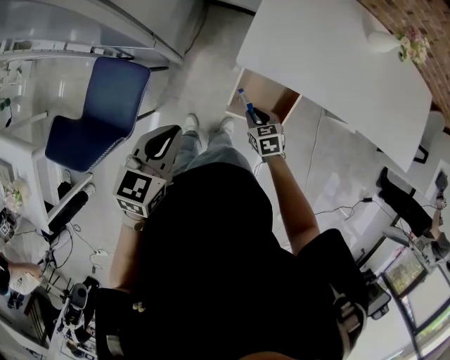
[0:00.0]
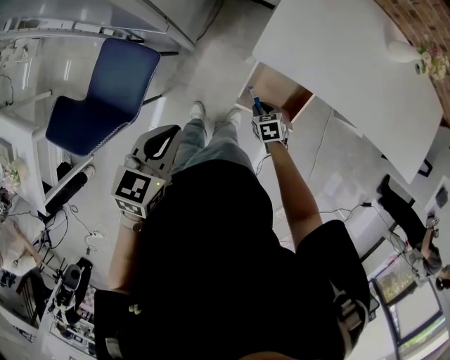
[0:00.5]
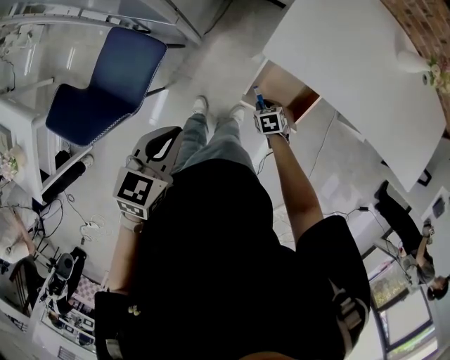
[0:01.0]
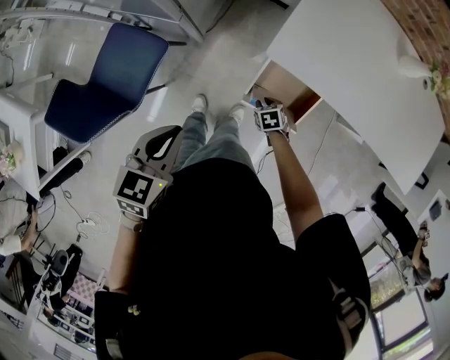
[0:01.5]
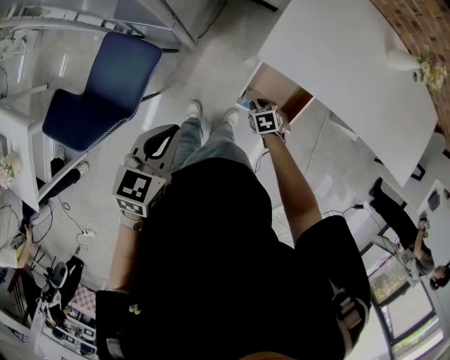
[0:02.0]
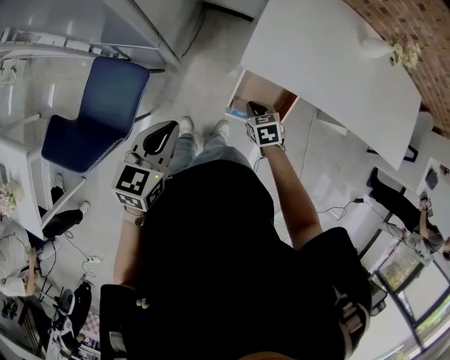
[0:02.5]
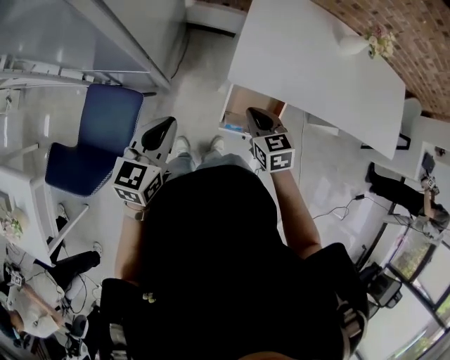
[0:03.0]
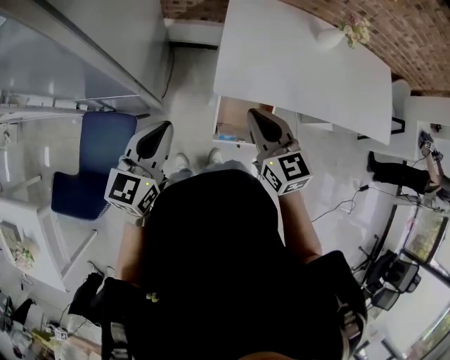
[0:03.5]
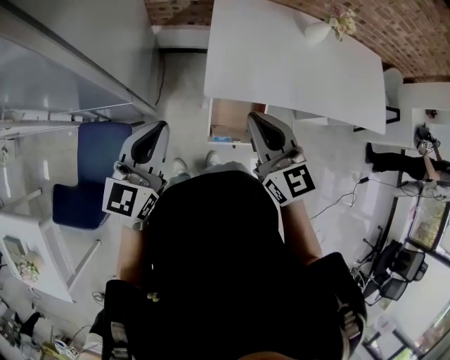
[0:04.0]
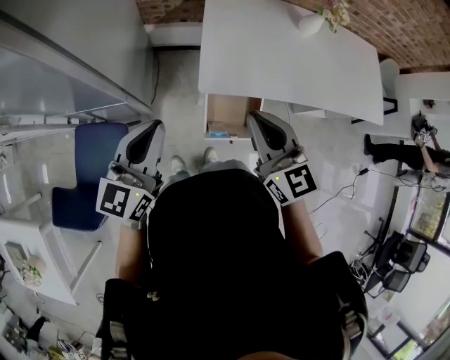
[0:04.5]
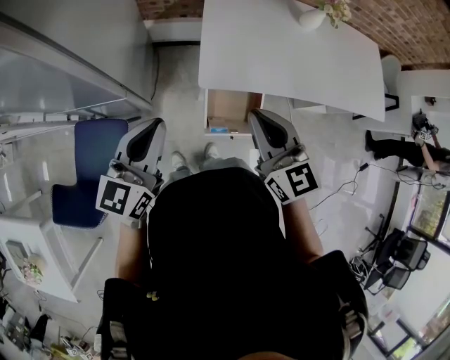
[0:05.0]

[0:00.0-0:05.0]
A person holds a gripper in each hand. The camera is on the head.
0:00.0 to 0:02.5: The right gripper moves some 10 cm downward and comes back.
0:02.5 to 0:05.0: The left gripper goes some 15 cm upward and forward, and changes its angle by about 30 degrees; the right gripper travels upward by about 35 cm, and angles its fingers upward, by roughly 50 degrees.

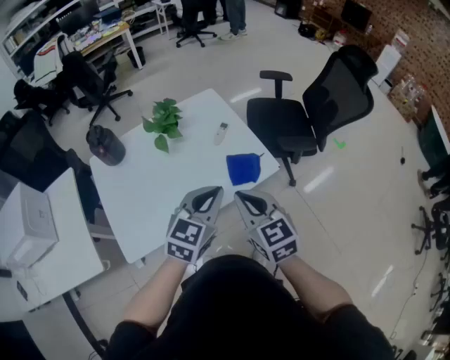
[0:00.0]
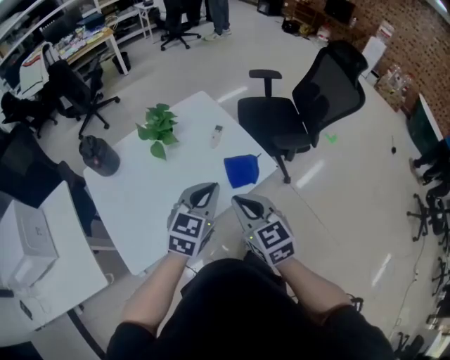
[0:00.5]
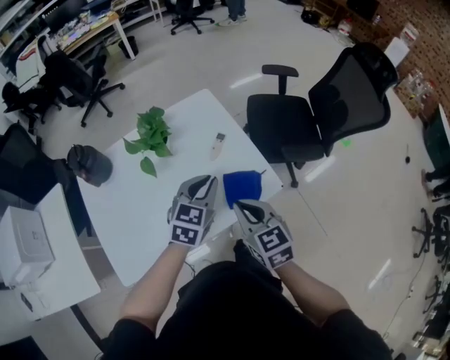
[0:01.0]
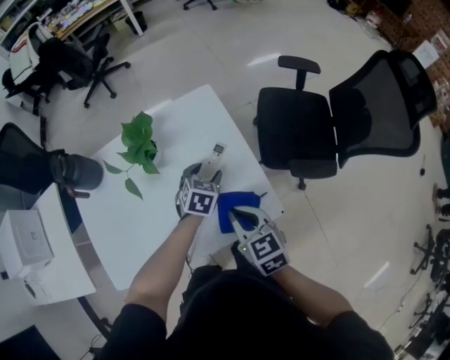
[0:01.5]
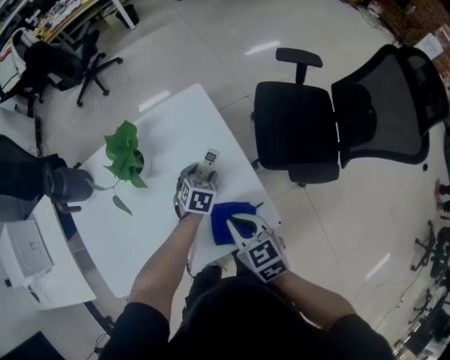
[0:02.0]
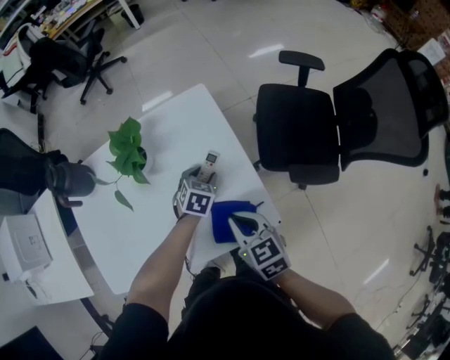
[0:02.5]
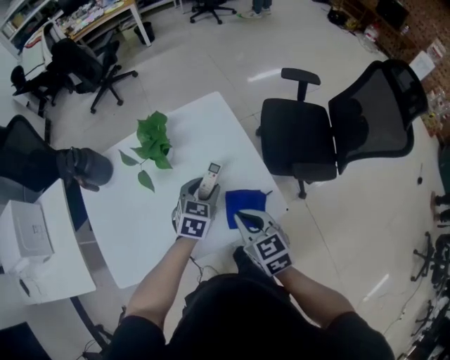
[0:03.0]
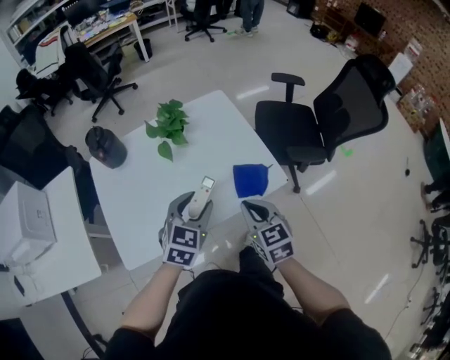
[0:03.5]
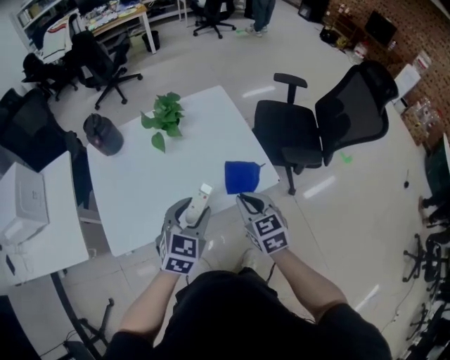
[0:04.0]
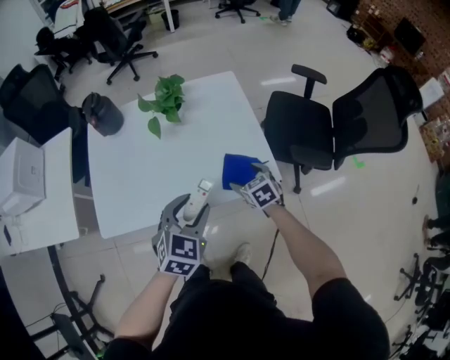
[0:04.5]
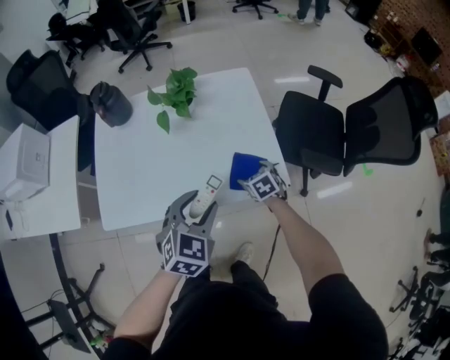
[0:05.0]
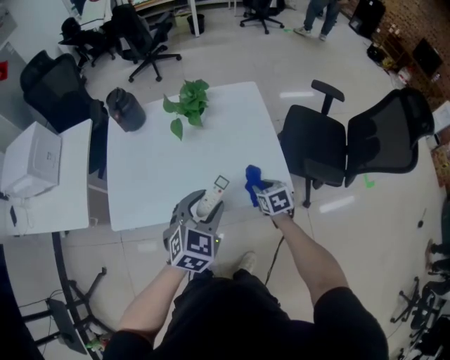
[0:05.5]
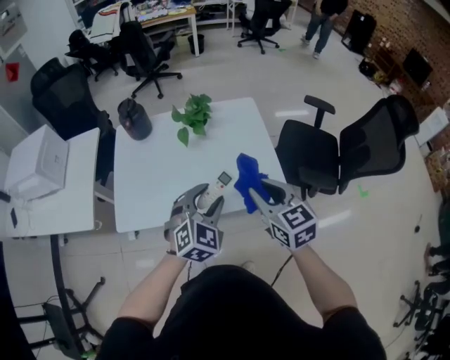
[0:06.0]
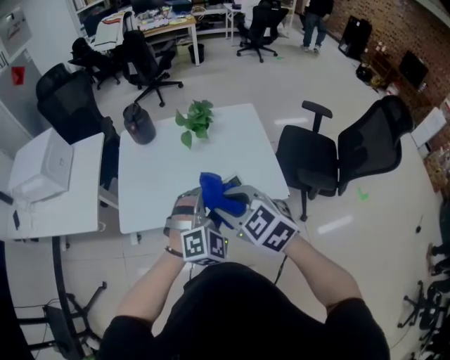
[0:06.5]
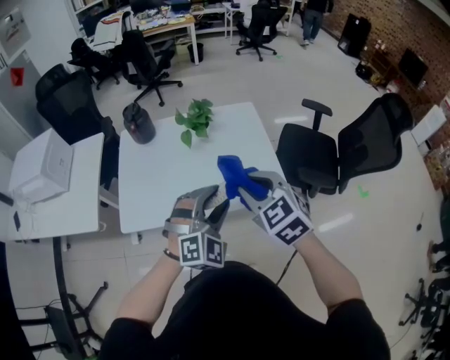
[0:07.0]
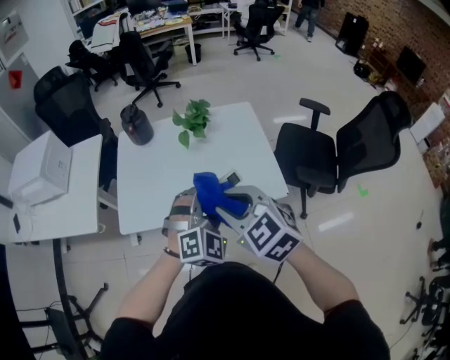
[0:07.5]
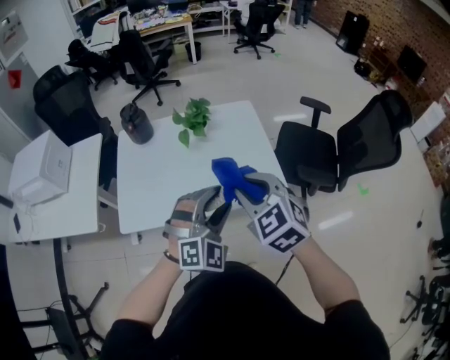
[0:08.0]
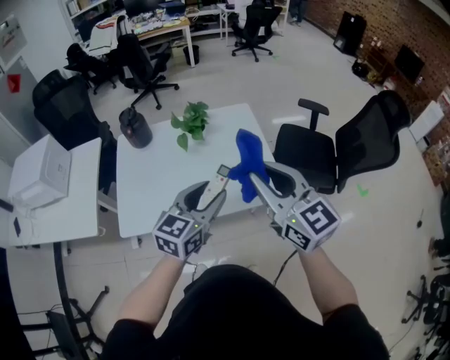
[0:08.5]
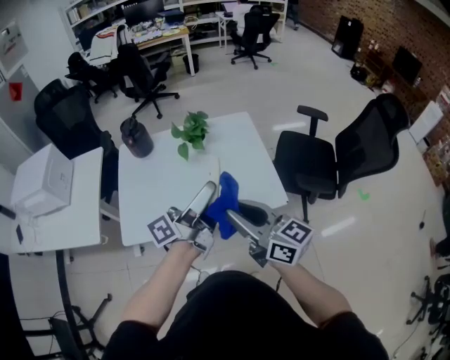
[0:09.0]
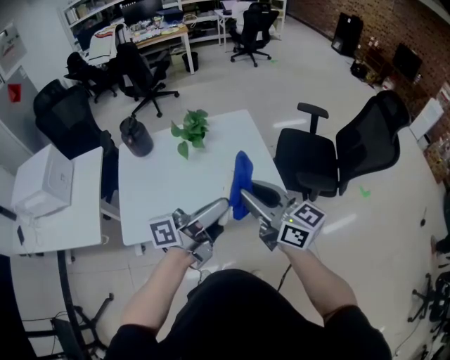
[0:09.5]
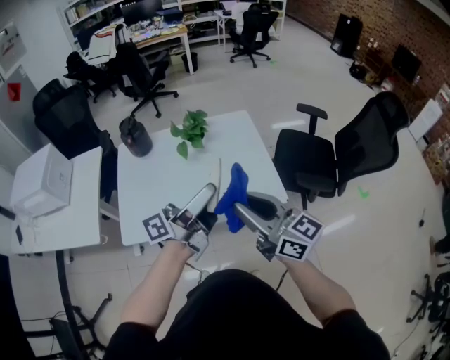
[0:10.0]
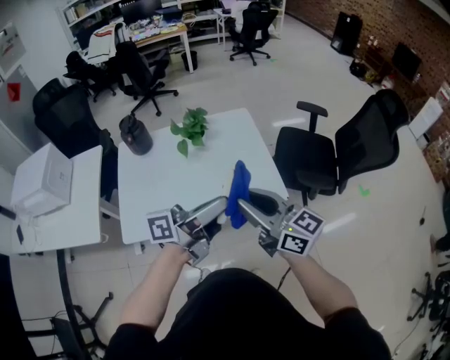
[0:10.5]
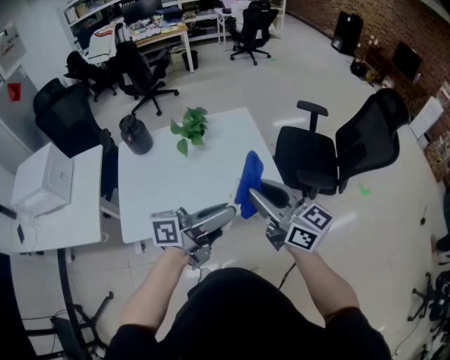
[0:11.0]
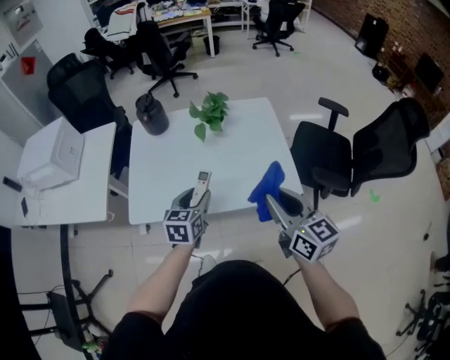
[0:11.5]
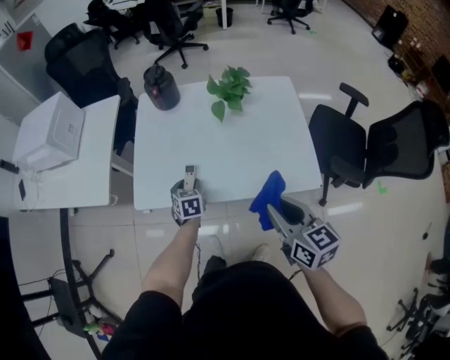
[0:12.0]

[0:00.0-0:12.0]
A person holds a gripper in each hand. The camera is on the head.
0:00.0 to 0:02.0: The right gripper heads forward and downward, covering roughly 25 cm, and turns by some 20 degrees. Meanwhile the left gripper travels forward and downward by approximately 50 cm, tilts its fingers roughly 40 degrees downward, and opens.
0:02.0 to 0:04.0: The left gripper shifts roughly 40 cm backward and upward, and turns by roughly 30 degrees. Meanwhile the right gripper shifts roughly 15 cm backward and upward.
0:04.0 to 0:06.0: The right gripper goes downward and returns, about 20 cm each way, and opens, then closes once more.
0:06.0 to 0:08.0: The left gripper heads backward, covering about 5 cm, and rotates some 30 degrees. Meanwhile the right gripper moves left and right over about 10 cm, changing direction 3 times, and turns by approximately 30 degrees.
0:08.0 to 0:10.0: The right gripper points its fingers some 40 degrees further upward, while the left gripper heads upward, covering some 5 cm, and twists about 110 degrees counterclockwise, seen from behind.
0:10.0 to 0:12.0: The right gripper shifts approximately 15 cm downward, and swivels about 30 degrees. Meanwhile the left gripper goes roughly 35 cm downward, and tilts its fingers approximately 70 degrees downward.

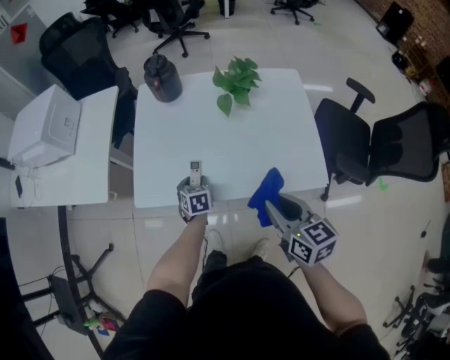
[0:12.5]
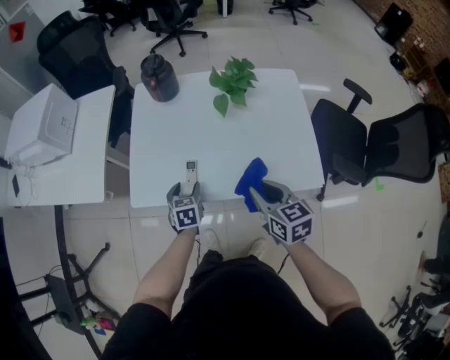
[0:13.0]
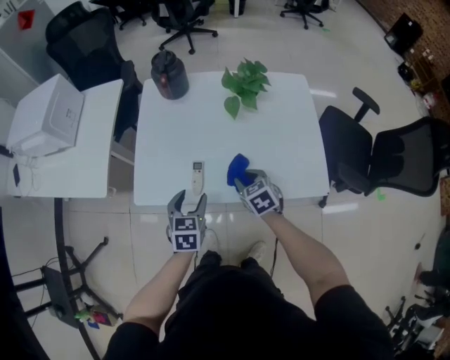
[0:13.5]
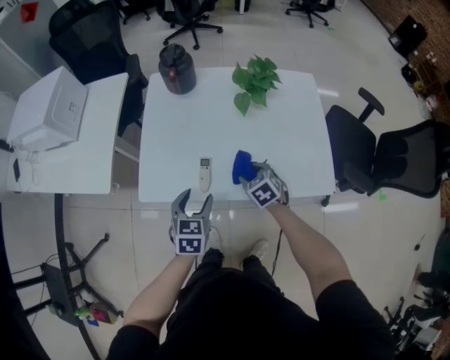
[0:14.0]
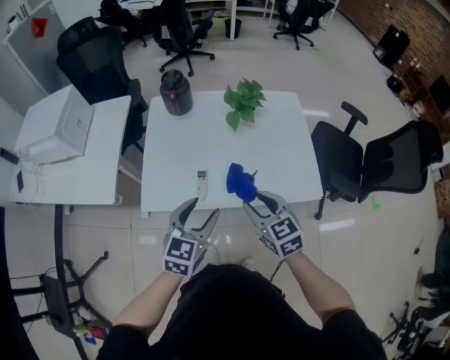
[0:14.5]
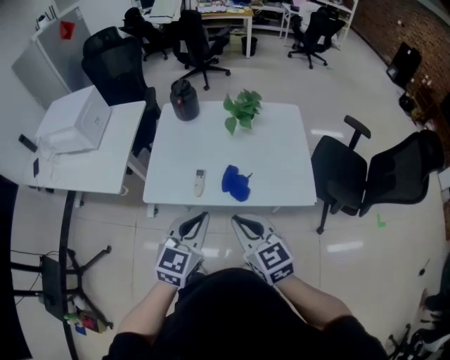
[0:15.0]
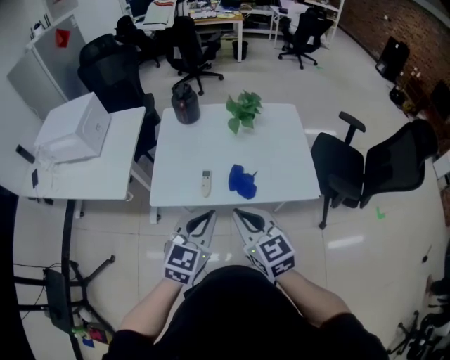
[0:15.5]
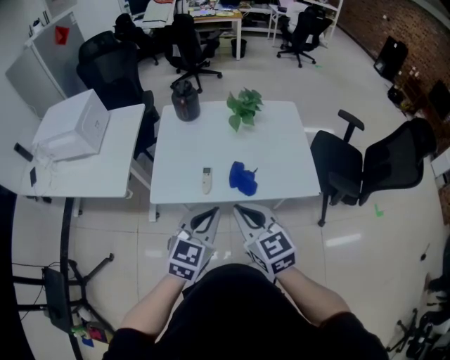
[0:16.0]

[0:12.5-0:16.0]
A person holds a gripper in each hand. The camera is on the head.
0:12.5 to 0:14.5: The left gripper moves upward and backward, approximately 25 cm, and changes its angle by roughly 40 degrees; the right gripper moves to the left, some 5 cm, moves roughly 20 cm downward and comes back, and turns by some 20 degrees.
0:14.5 to 0:16.0: The right gripper moves backward, upward and to the left, some 15 cm, and closes its fingers; the left gripper moves backward and upward, approximately 10 cm, and closes up.

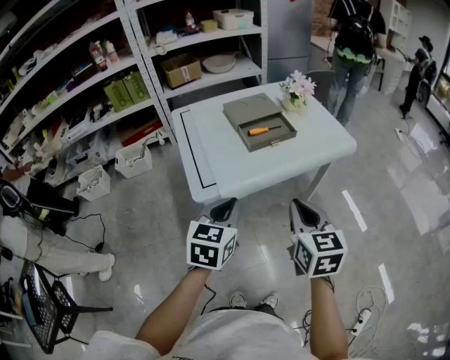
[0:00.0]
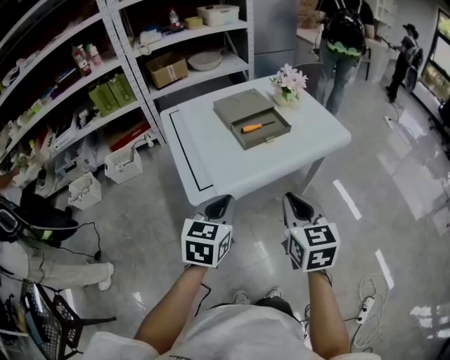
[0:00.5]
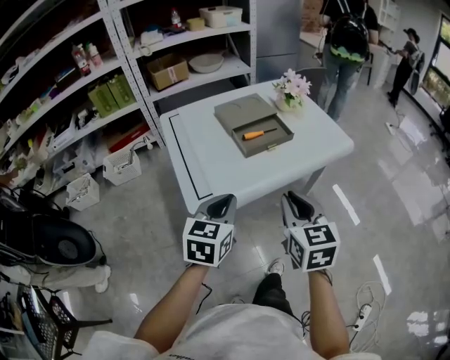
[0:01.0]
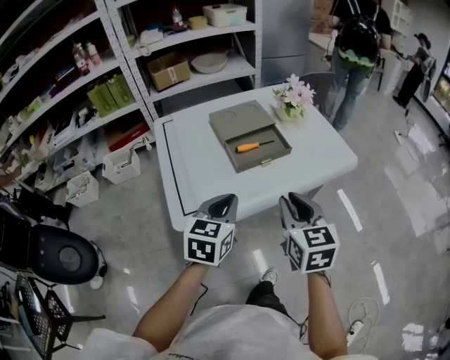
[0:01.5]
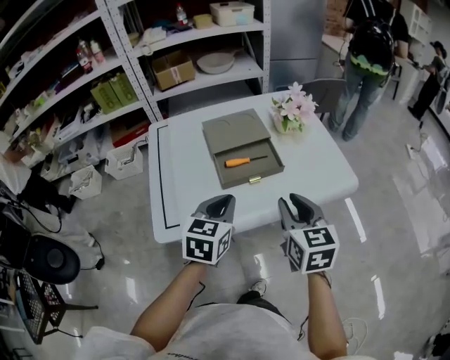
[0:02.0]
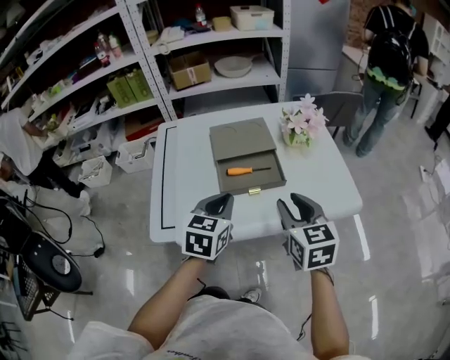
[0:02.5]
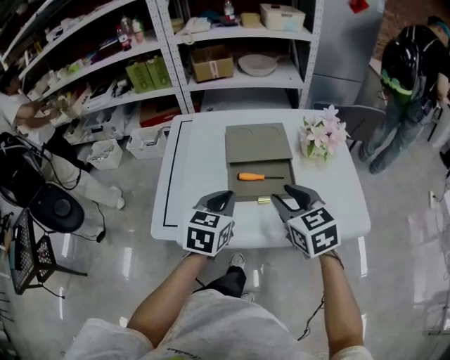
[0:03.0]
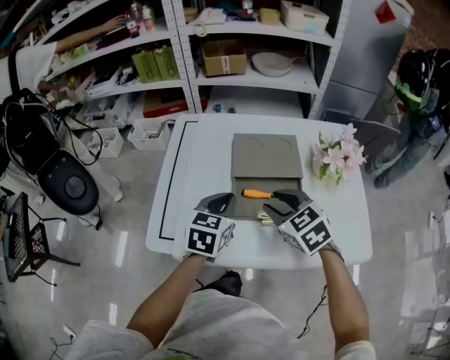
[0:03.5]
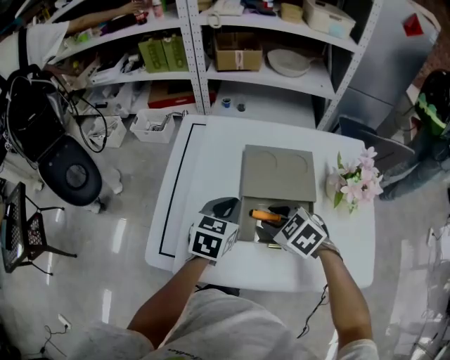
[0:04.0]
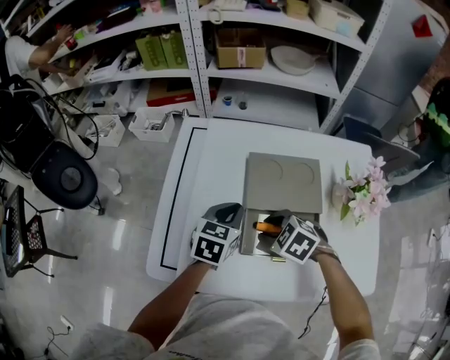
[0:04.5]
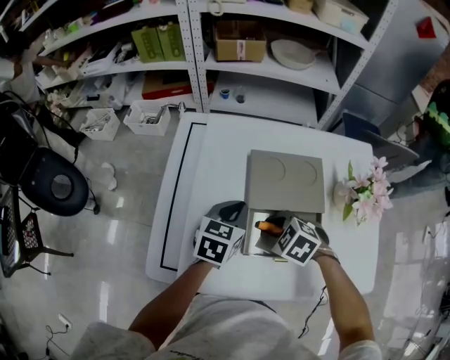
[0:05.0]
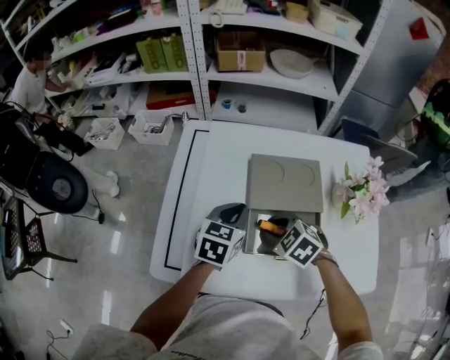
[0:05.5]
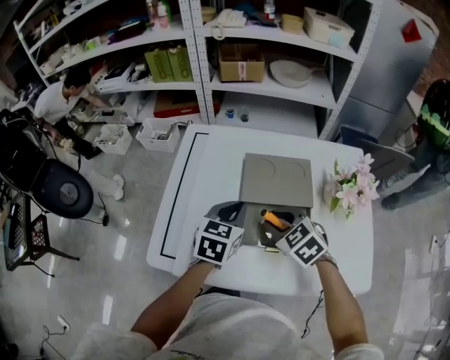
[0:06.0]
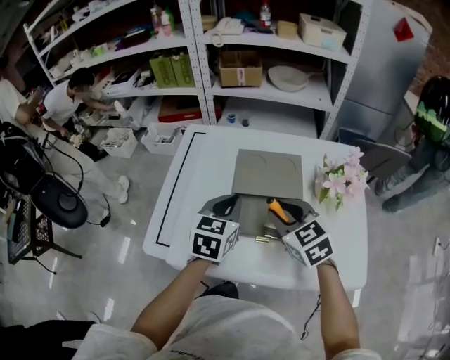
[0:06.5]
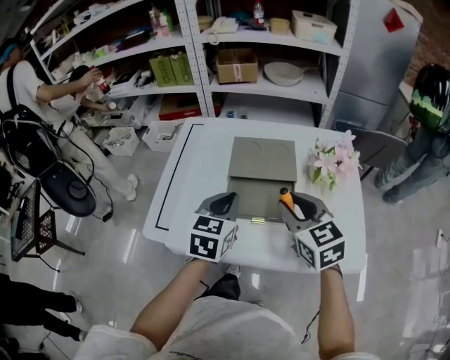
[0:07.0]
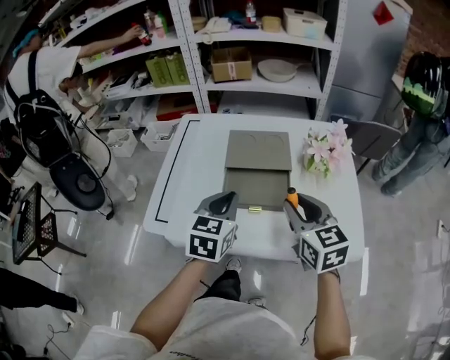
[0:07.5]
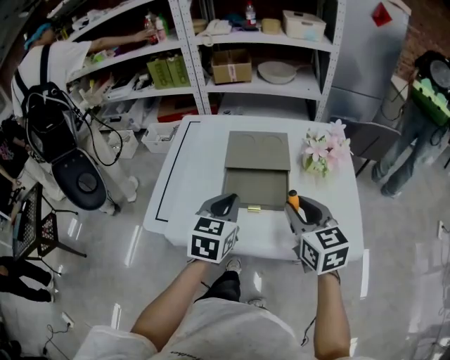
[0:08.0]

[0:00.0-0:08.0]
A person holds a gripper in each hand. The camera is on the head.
0:00.0 to 0:02.0: The two grippers go about 25 cm forward. The right gripper opens its fingers.
0:02.0 to 0:04.0: The right gripper changes place by roughly 25 cm, and tilts its fingers some 30 degrees downward. Meanwhile the left gripper moves roughly 20 cm.
0:04.0 to 0:06.0: The grippers move only a little.
0:06.0 to 0:08.0: The left gripper travels backward by approximately 15 cm. The right gripper moves backward, to the right and upward, about 20 cm, and swivels roughly 40 degrees.
